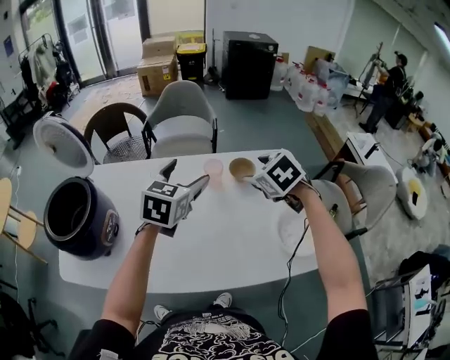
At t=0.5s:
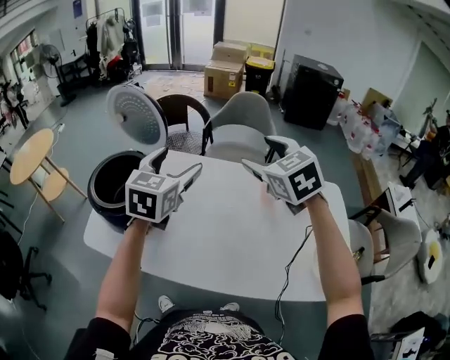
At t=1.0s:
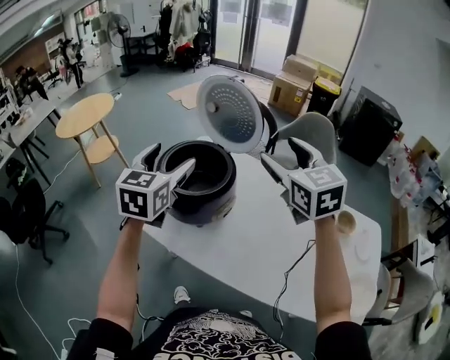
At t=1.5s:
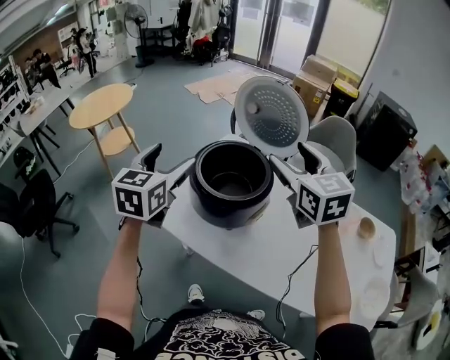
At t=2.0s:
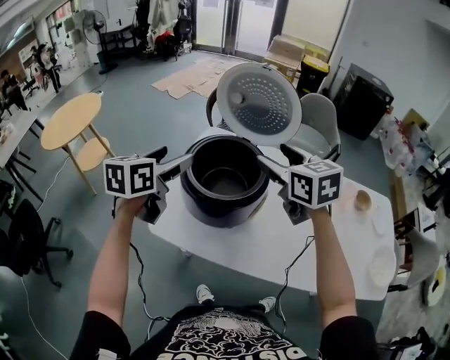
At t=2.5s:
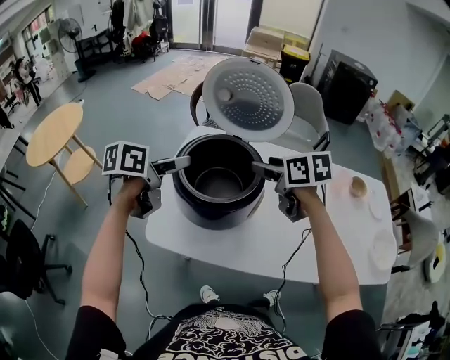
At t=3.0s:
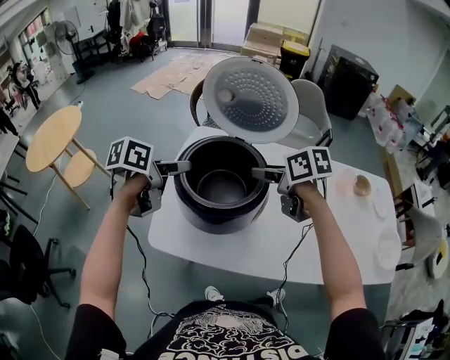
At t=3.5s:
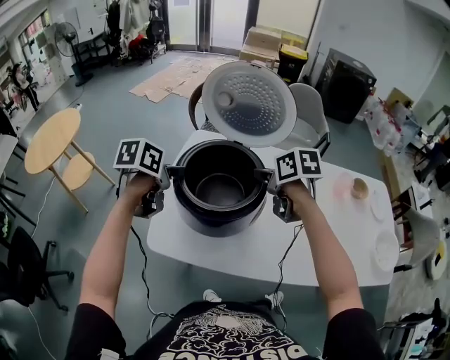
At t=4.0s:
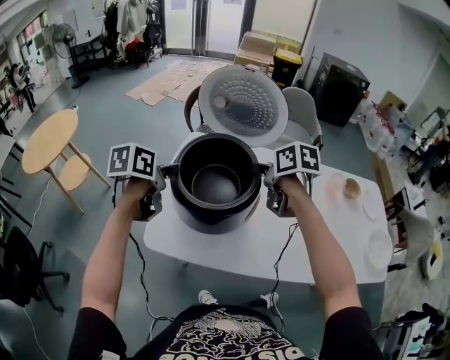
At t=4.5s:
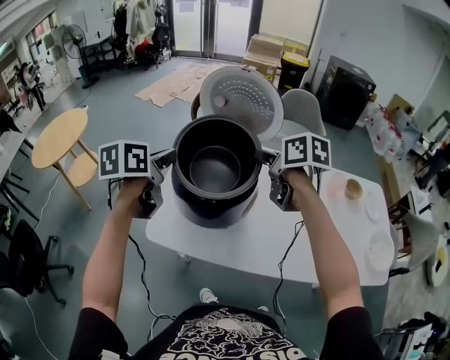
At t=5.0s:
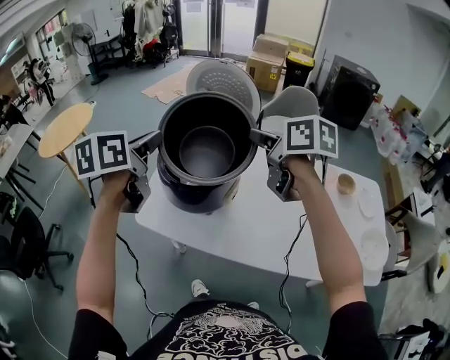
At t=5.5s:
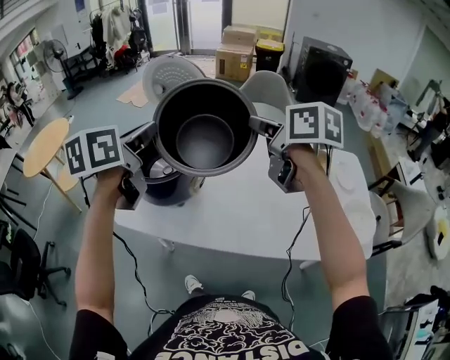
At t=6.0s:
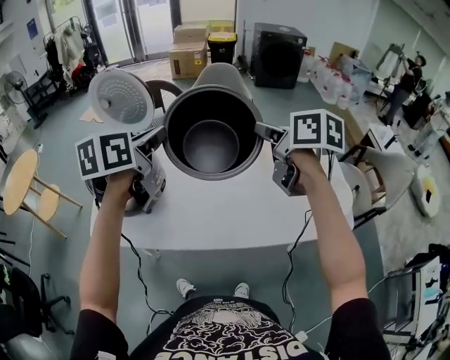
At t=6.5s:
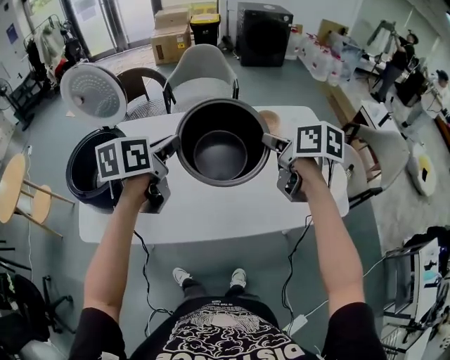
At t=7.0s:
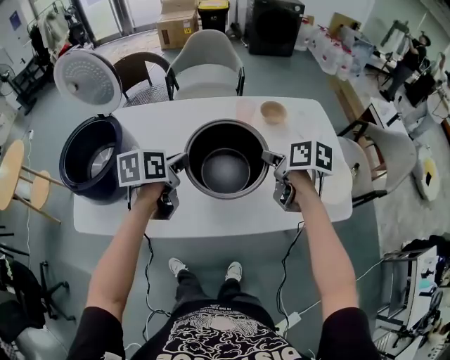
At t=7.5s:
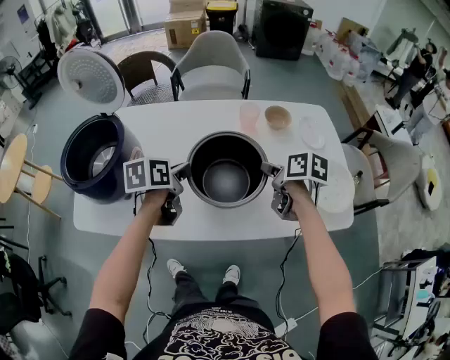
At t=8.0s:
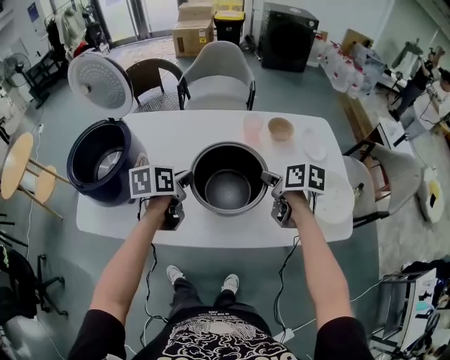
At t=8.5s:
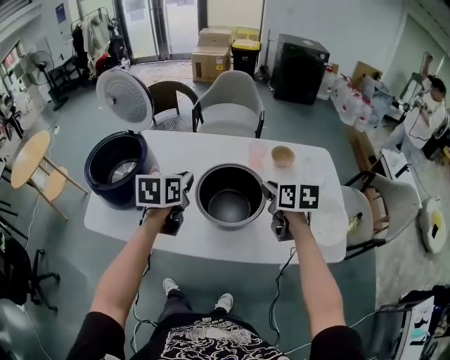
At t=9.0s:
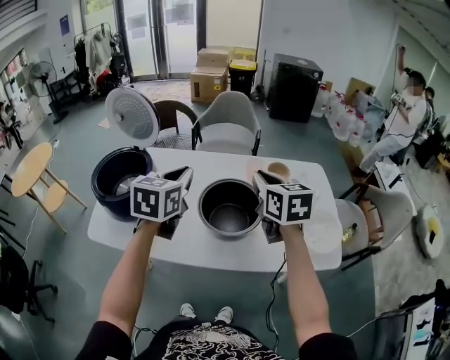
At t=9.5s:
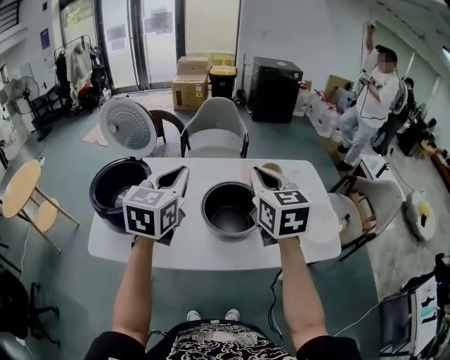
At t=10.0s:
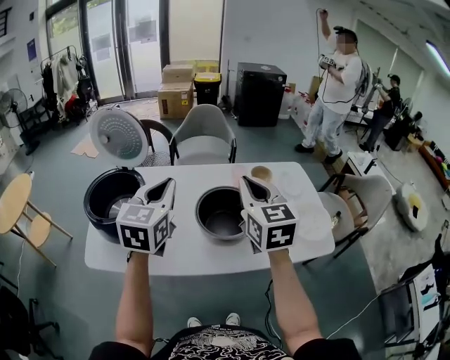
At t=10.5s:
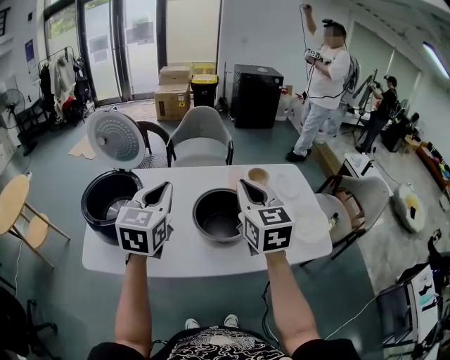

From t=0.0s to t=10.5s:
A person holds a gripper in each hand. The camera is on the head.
From t=0.0s to t=2.0s: The pair of grippers is taken some 70 cm. The left gripper changes its angle by approximately 30 degrees, while the right gripper turns by about 40 degrees.
From t=2.0s to t=4.0s: The two grippers go about 10 cm downward and forward. The left gripper turns by approximately 20 degrees, and closes its fingers. The right gripper turns by approximately 40 degrees, and closes.
From t=4.0s to t=6.5s: The two grippers travel together, some 60 cm. The right gripper changes its angle by roughly 30 degrees.
From t=6.5s to t=8.5s: Both grippers move downward, approximately 5 cm.
From t=8.5s to t=10.5s: The grippers both shift upward, backward and to the left by approximately 25 cm. The right gripper changes its angle by some 40 degrees. Meanwhile the left gripper turns by some 30 degrees.

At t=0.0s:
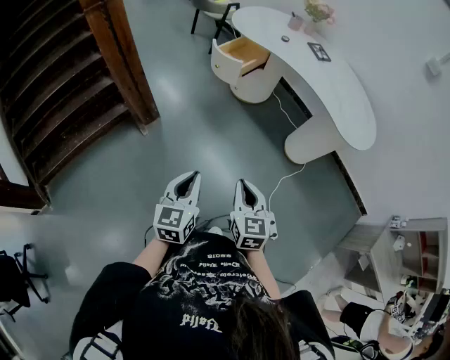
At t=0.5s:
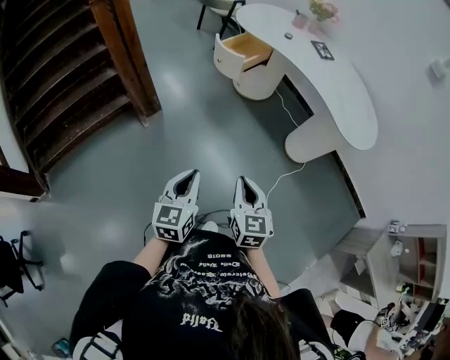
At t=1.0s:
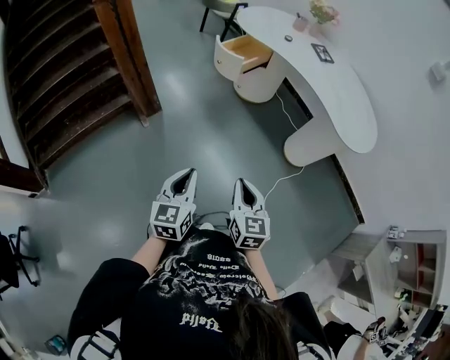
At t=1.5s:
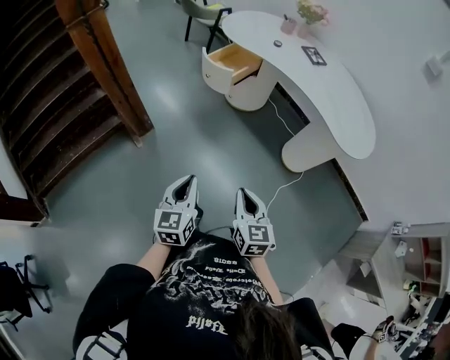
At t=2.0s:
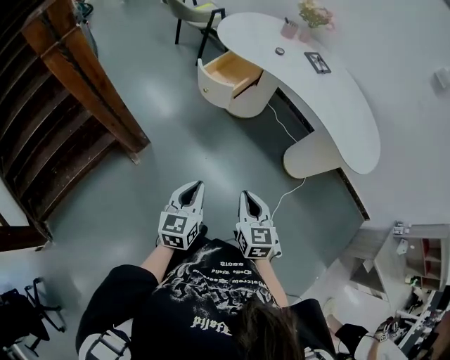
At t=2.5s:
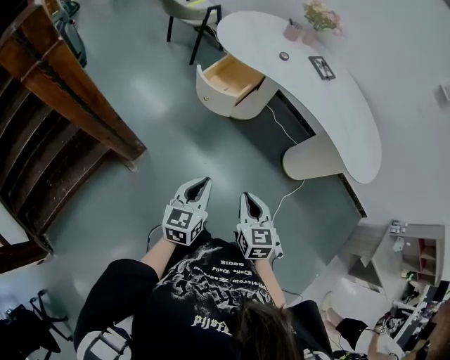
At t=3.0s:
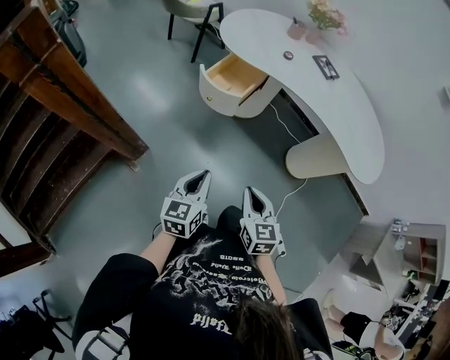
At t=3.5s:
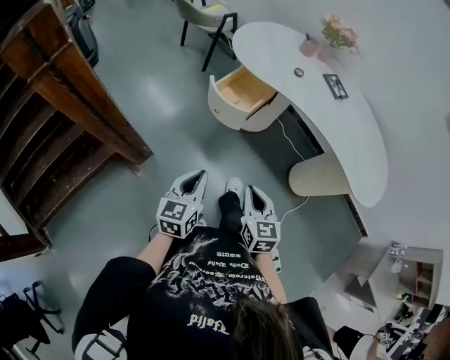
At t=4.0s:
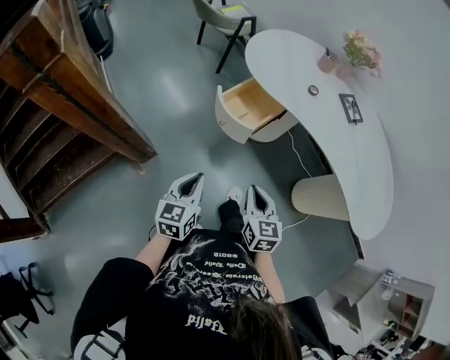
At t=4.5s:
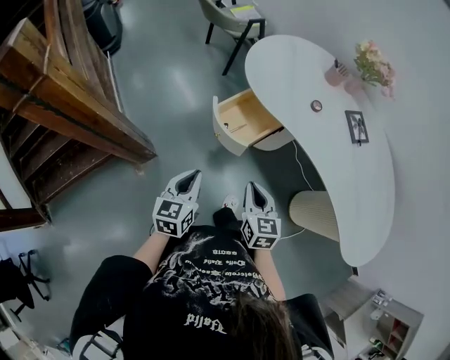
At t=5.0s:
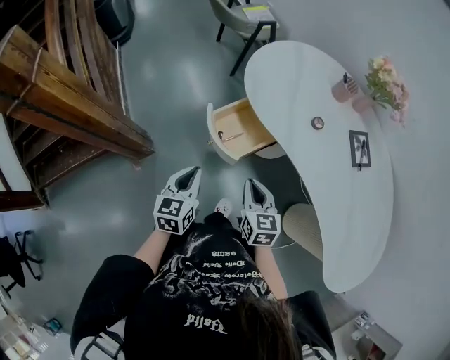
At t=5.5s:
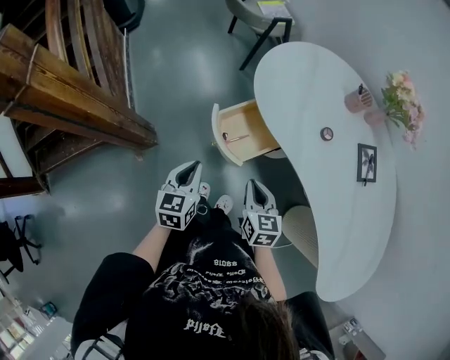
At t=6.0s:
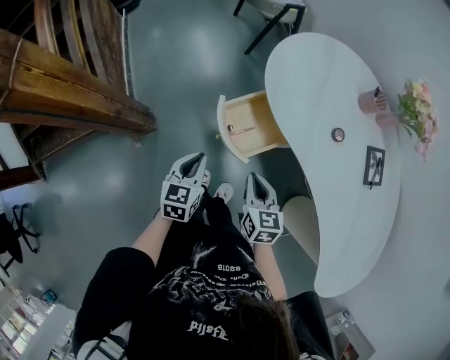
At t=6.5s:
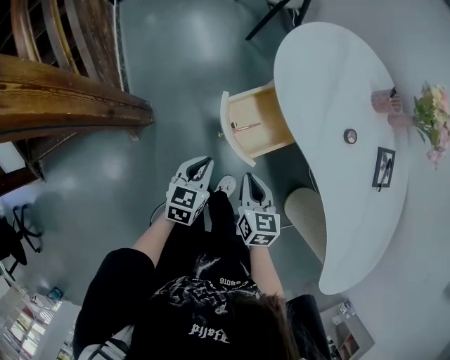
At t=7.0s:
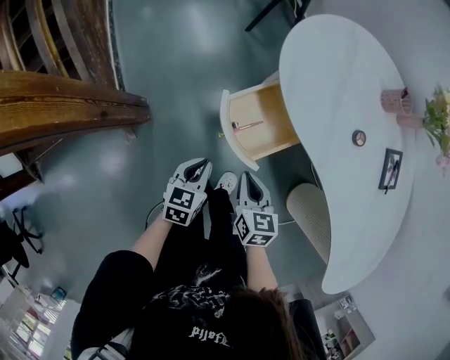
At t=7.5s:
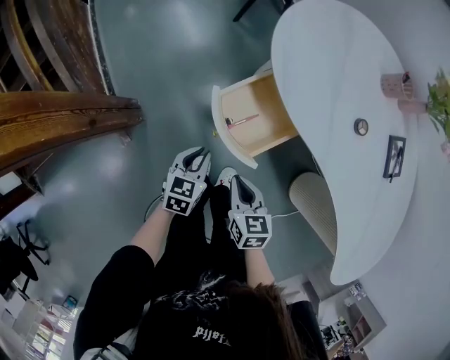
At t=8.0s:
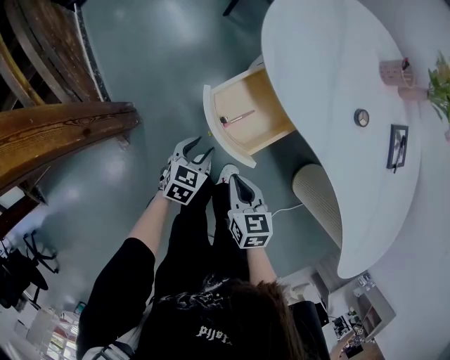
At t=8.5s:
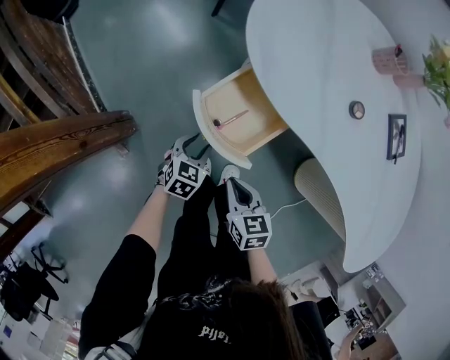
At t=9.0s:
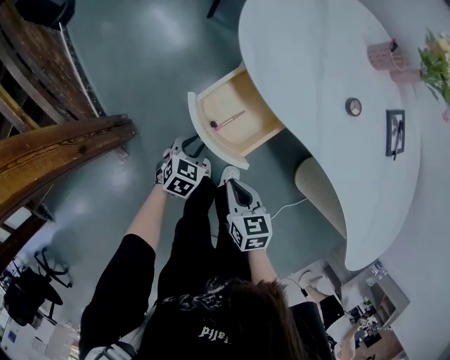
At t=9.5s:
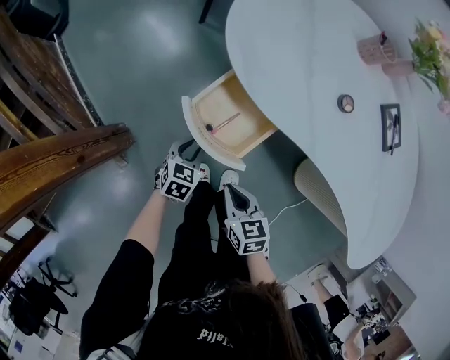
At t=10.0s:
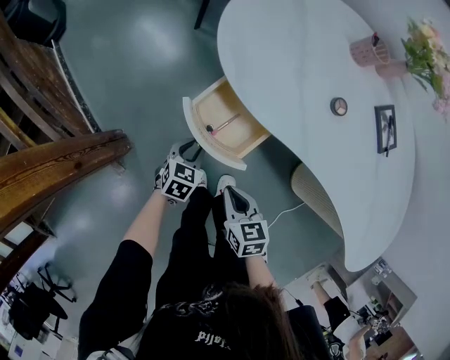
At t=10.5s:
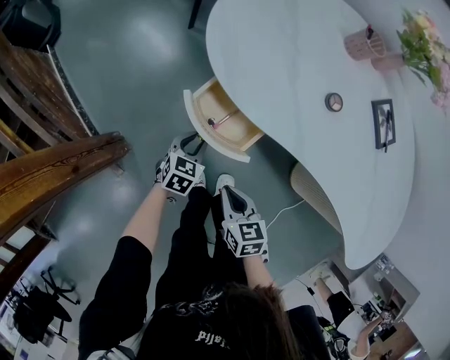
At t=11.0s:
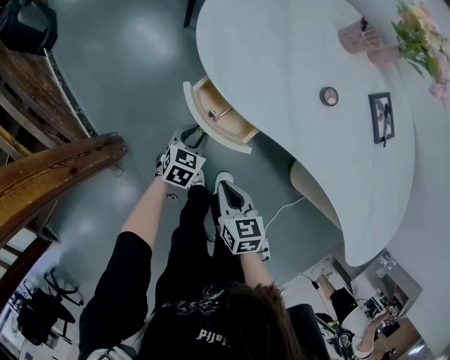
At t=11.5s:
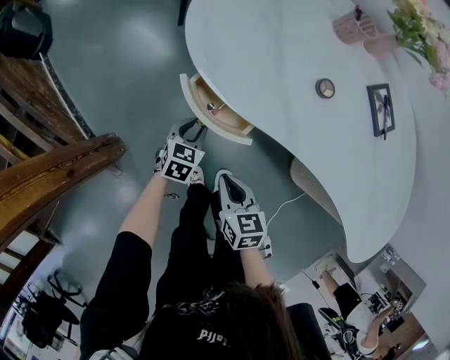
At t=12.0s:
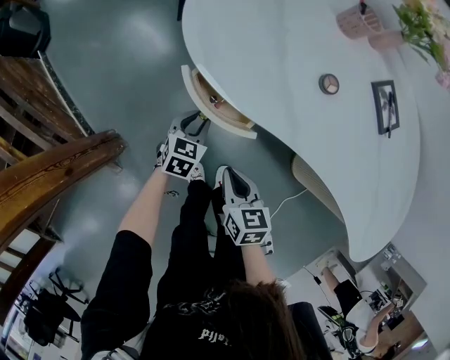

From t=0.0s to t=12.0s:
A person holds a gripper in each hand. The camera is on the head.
From t=0.0s to t=2.0s: The grippers both shift forward by about 20 cm.
From t=2.0s to t=4.0s: Both grippers move forward, some 25 cm.
From t=4.0s to t=6.0s: Both grippers travel together forward, some 25 cm.
From t=6.0s to t=8.0s: The left gripper goes about 20 cm downward, turns by about 30 degrees, and opens. Meanwhile the right gripper moves downward and to the left, some 15 cm.
From t=8.0s to t=10.0s: The left gripper travels forward by approximately 5 cm.
From t=10.0s to t=12.0s: The left gripper shifts roughly 10 cm forward and to the right, while the right gripper ends up roughly 5 cm from where it was.

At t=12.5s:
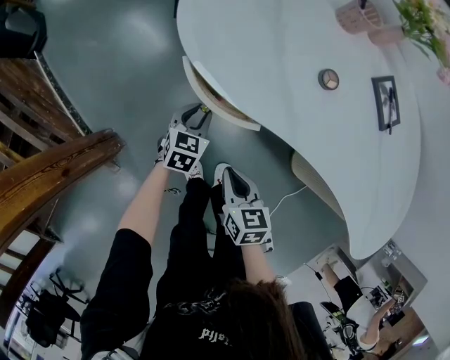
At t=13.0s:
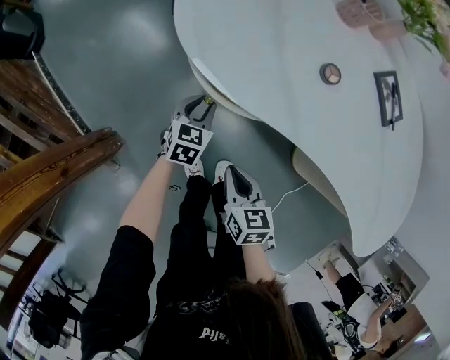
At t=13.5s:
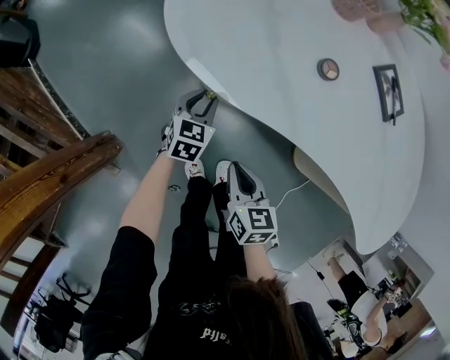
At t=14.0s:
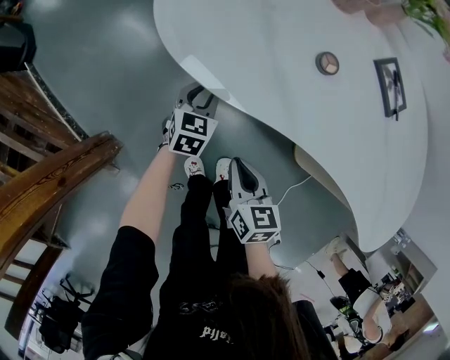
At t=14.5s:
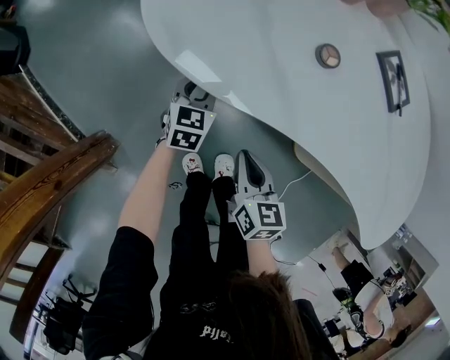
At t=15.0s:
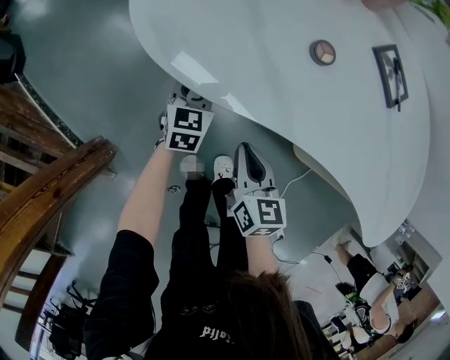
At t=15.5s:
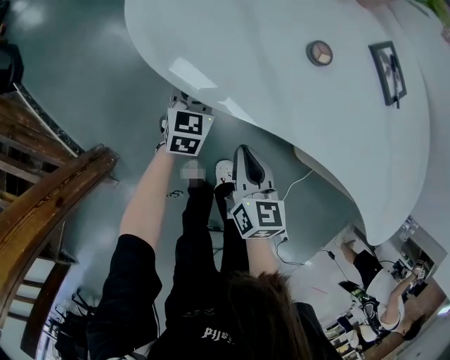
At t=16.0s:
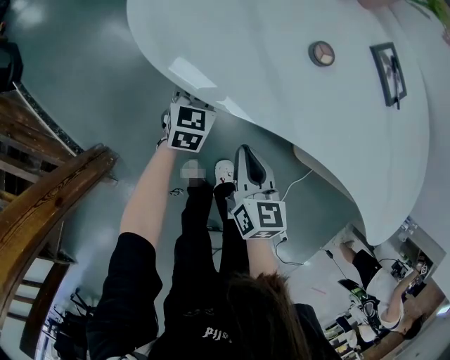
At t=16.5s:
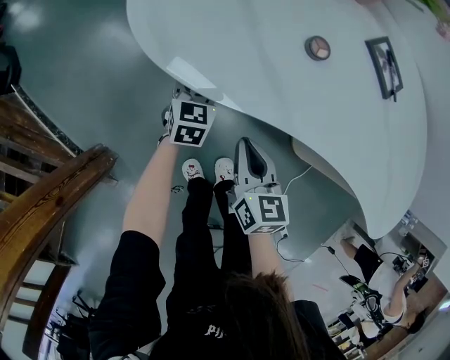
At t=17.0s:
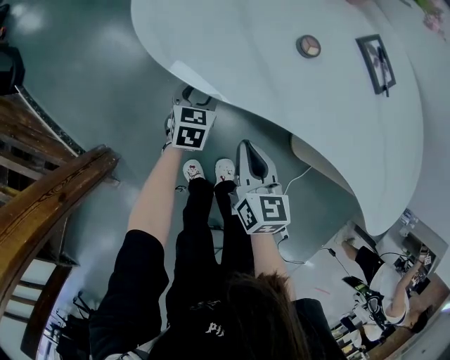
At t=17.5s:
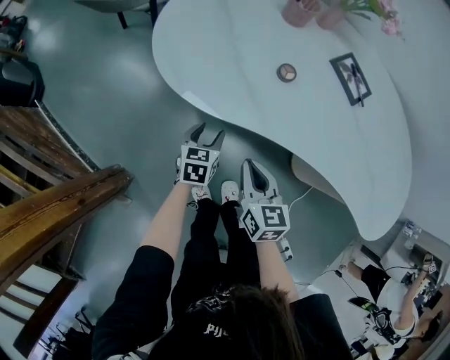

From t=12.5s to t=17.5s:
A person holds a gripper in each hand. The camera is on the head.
From t=12.5s to t=15.0s: The grippers both shift forward and to the right by roughly 10 cm.
From t=15.0s to t=17.5s: The left gripper travels backward and upward by about 10 cm, and opens up. The right gripper goes about 10 cm upward.
